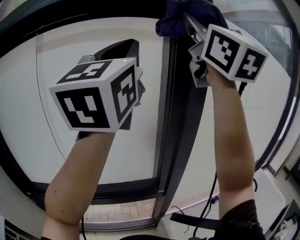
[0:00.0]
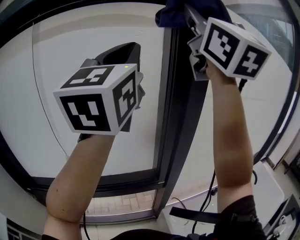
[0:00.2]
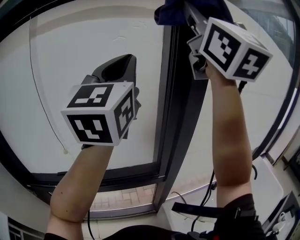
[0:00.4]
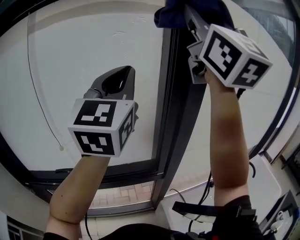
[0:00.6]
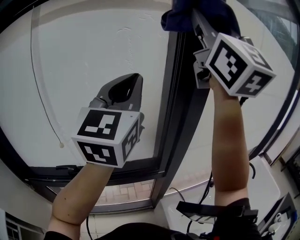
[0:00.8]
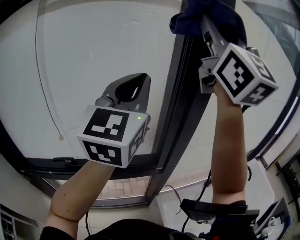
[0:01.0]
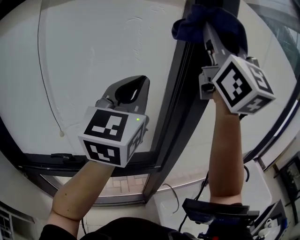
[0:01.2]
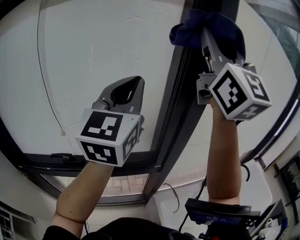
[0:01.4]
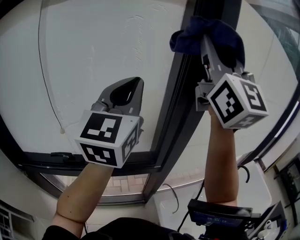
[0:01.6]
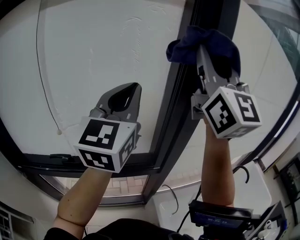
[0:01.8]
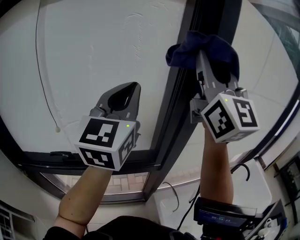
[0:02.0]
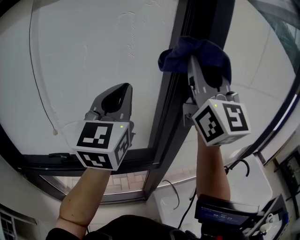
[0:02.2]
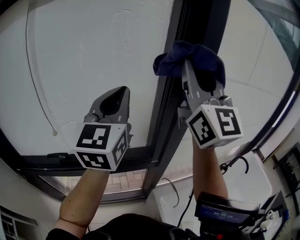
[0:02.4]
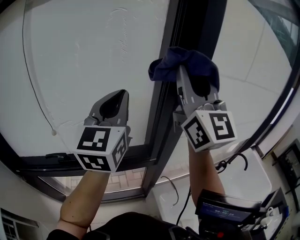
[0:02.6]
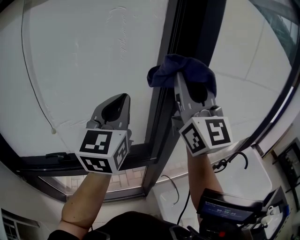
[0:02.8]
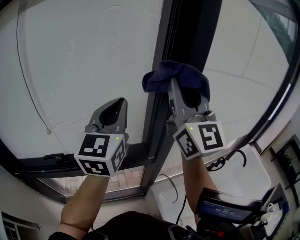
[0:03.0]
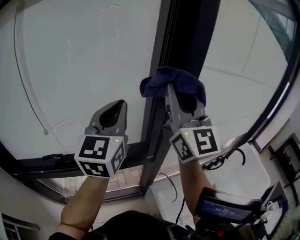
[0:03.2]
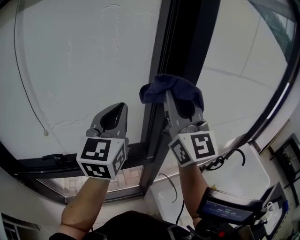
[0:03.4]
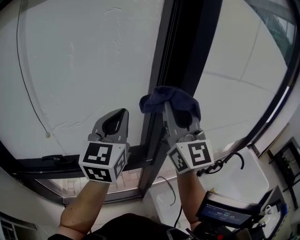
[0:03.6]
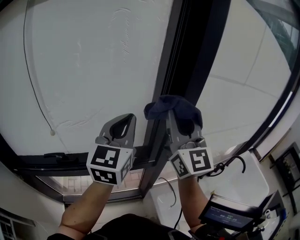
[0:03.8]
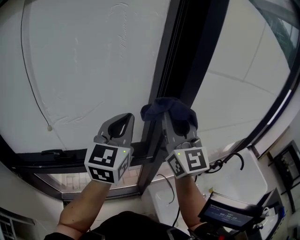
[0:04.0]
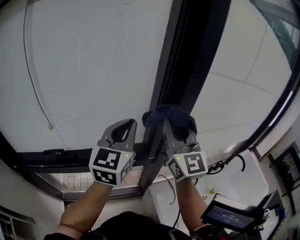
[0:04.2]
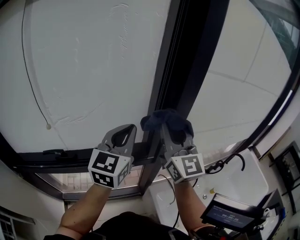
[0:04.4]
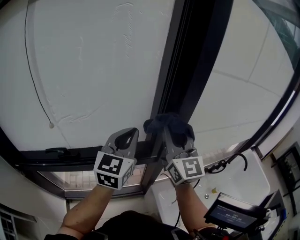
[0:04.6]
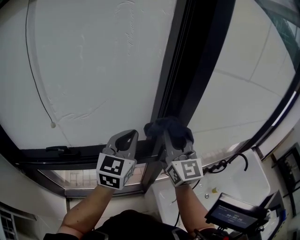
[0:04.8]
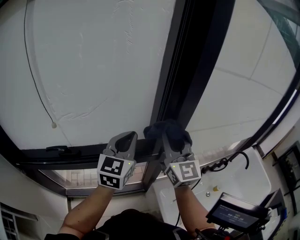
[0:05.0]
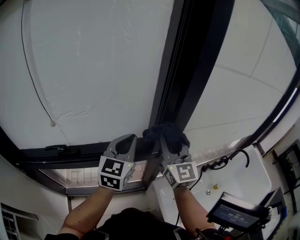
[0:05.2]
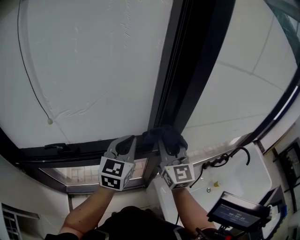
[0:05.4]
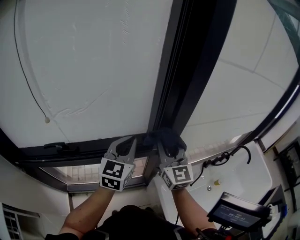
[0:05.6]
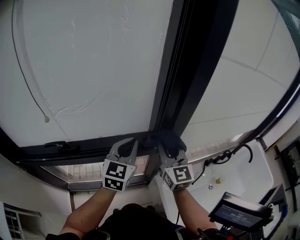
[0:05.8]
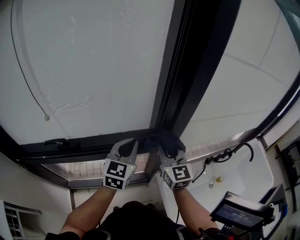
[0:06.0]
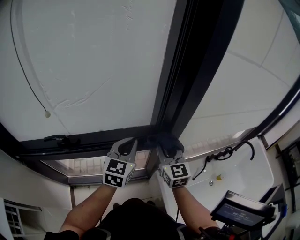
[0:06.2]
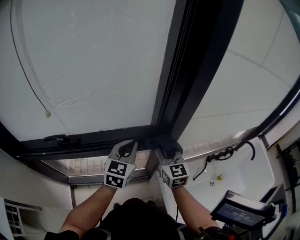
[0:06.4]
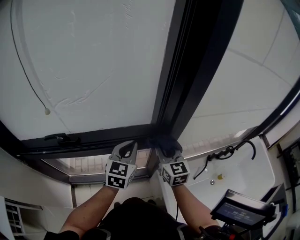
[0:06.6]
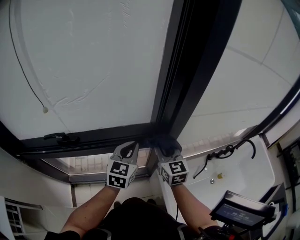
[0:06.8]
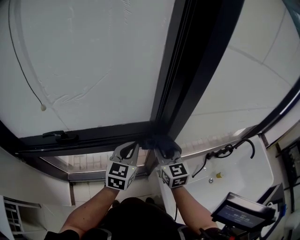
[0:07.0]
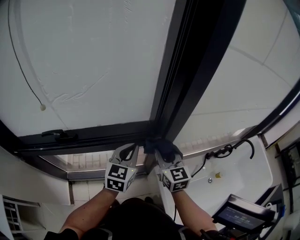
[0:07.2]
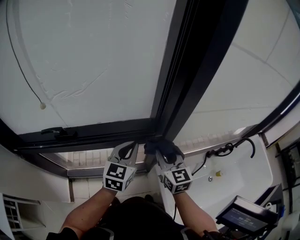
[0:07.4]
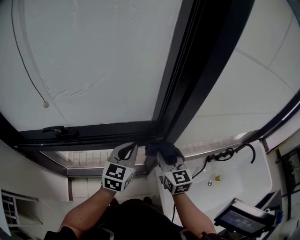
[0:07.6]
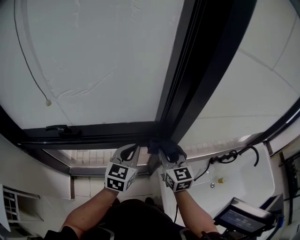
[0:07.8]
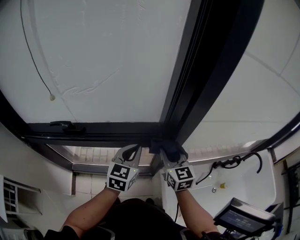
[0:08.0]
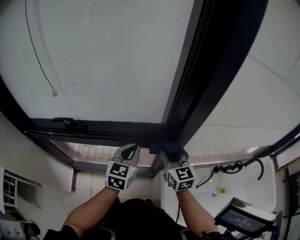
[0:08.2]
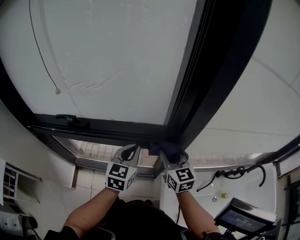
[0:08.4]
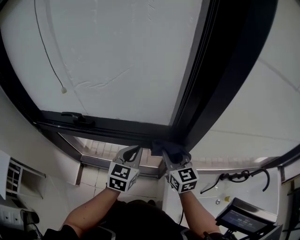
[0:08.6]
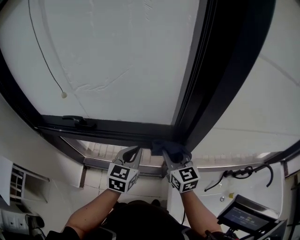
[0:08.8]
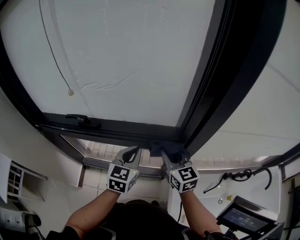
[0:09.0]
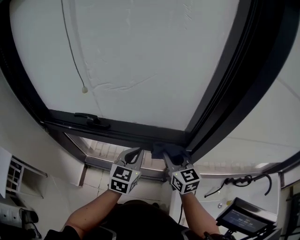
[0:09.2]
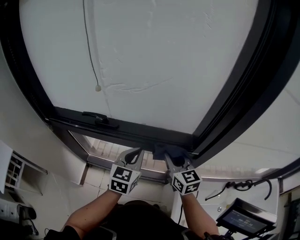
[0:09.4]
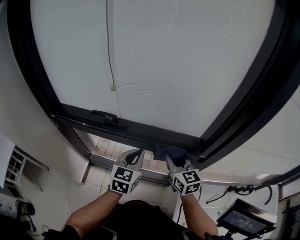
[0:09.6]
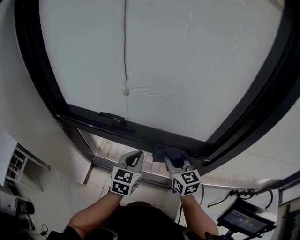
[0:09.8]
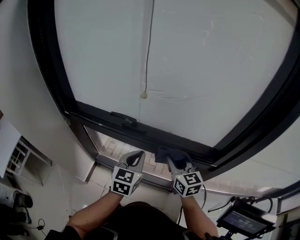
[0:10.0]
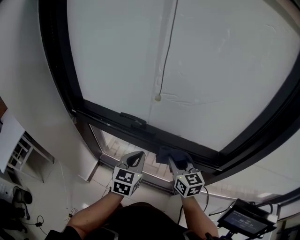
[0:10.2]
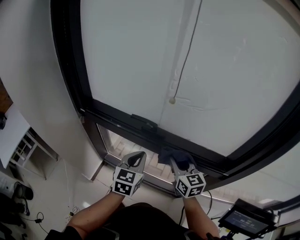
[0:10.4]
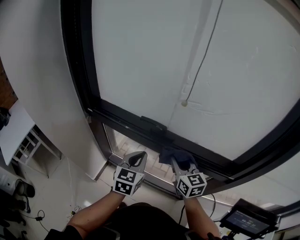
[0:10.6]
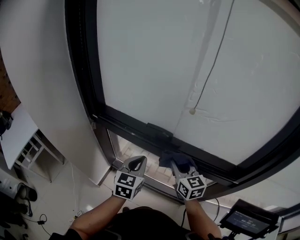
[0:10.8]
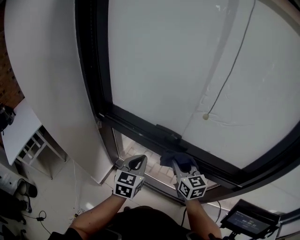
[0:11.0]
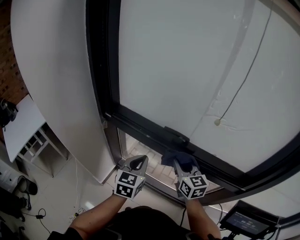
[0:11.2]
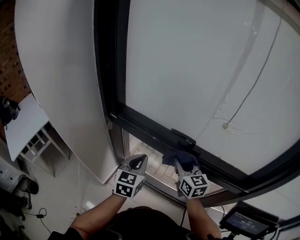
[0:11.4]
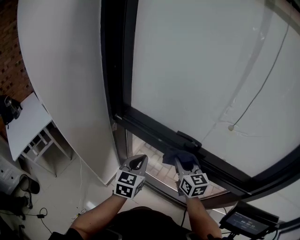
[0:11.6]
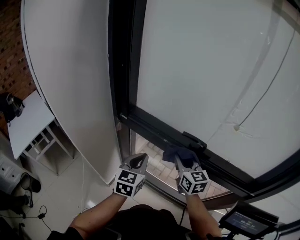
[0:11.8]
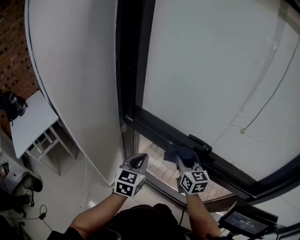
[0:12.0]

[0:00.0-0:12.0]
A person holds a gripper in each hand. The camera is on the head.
0:00.0 to 0:01.6: The grippers both shift downward by about 15 cm.
0:01.6 to 0:03.0: The right gripper heads downward, covering roughly 15 cm; the left gripper heads downward, covering about 10 cm.
0:03.0 to 0:04.4: The right gripper heads downward, covering about 15 cm, while the left gripper travels downward by roughly 10 cm.
0:04.4 to 0:06.0: Both grippers travel together downward, about 20 cm. The right gripper changes its angle by roughly 20 degrees.
0:06.0 to 0:07.6: The left gripper shifts about 5 cm downward. The right gripper travels downward by about 10 cm.
0:07.6 to 0:09.0: The two grippers go approximately 5 cm to the left. The right gripper rotates roughly 20 degrees.
0:09.0 to 0:10.4: Both grippers travel together to the left, some 25 cm.
0:10.4 to 0:12.0: The right gripper is displaced to the left and forward by roughly 25 cm. The left gripper heads to the left, covering some 25 cm.

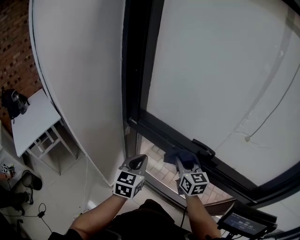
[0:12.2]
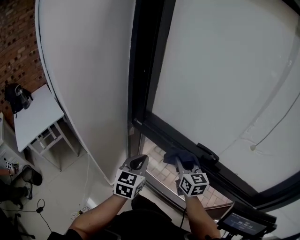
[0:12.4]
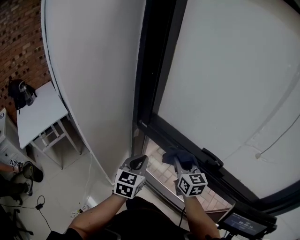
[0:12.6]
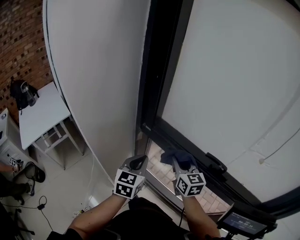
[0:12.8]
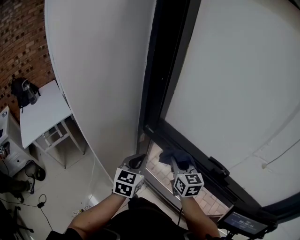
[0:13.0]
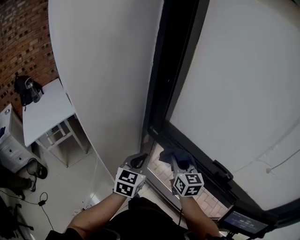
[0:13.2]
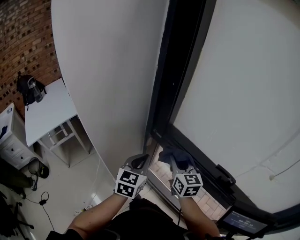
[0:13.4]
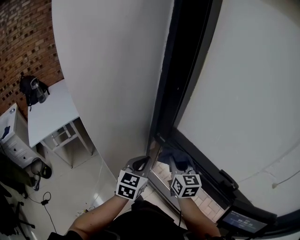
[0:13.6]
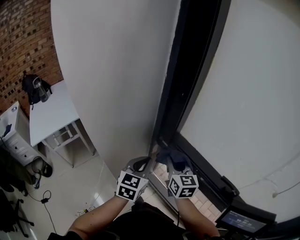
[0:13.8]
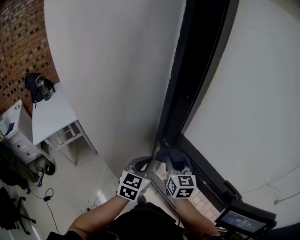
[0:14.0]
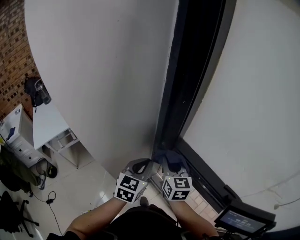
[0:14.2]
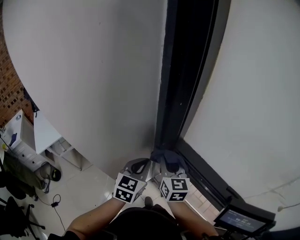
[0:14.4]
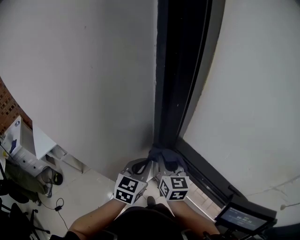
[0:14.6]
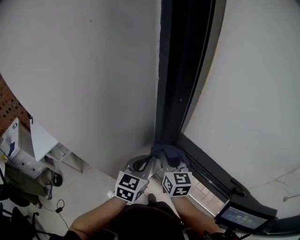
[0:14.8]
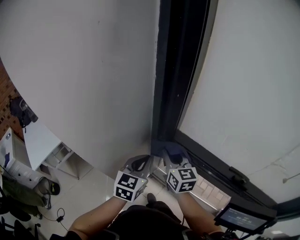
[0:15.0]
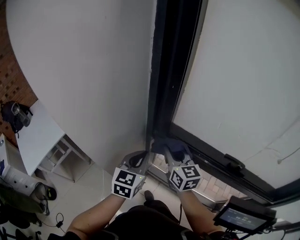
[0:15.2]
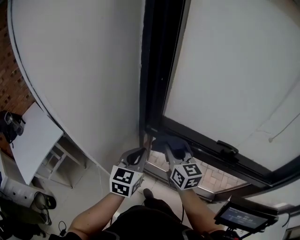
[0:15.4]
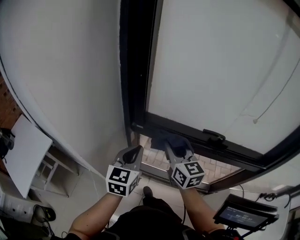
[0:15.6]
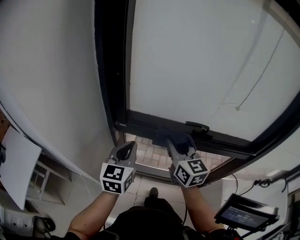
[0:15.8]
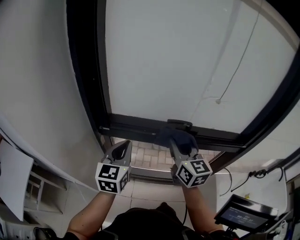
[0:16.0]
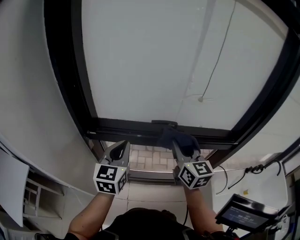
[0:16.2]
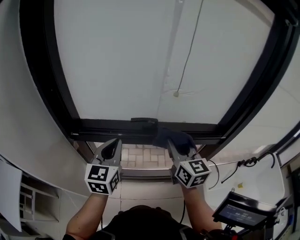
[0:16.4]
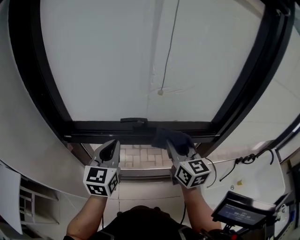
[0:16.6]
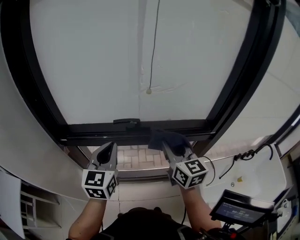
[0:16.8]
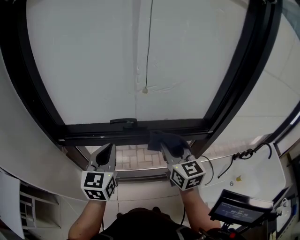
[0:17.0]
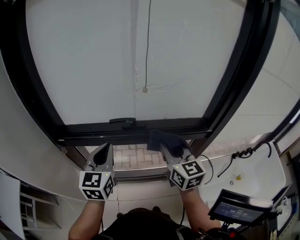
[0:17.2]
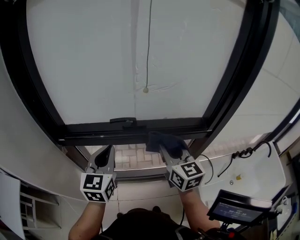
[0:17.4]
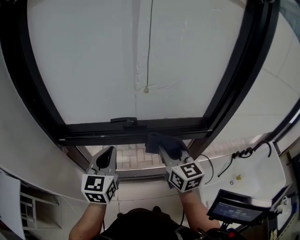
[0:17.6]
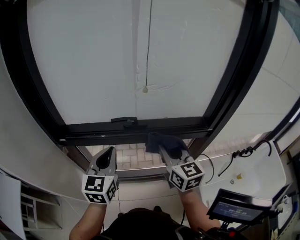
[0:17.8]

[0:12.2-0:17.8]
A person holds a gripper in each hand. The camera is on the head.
0:12.2 to 0:13.6: Both grippers travel together to the left and forward, some 15 cm.
0:13.6 to 0:15.0: The right gripper travels to the left by approximately 5 cm.
0:15.0 to 0:16.4: The left gripper moves roughly 25 cm, and rotates approximately 30 degrees. The right gripper moves roughly 40 cm, and changes its angle by approximately 40 degrees.
0:16.4 to 0:17.8: Both grippers move to the right, some 5 cm.

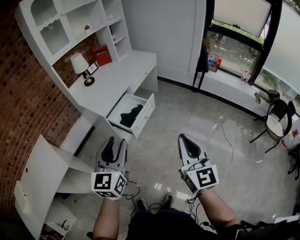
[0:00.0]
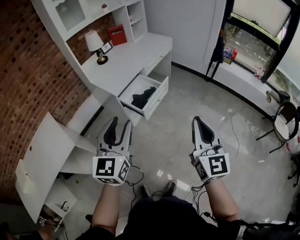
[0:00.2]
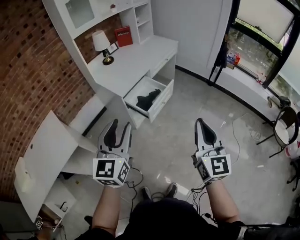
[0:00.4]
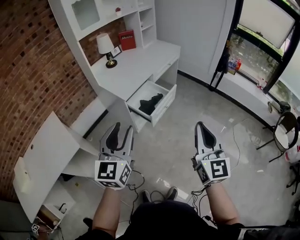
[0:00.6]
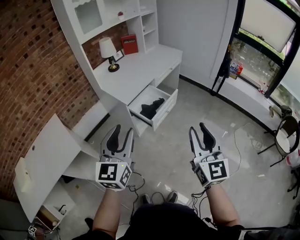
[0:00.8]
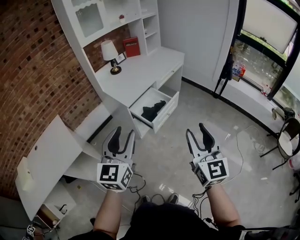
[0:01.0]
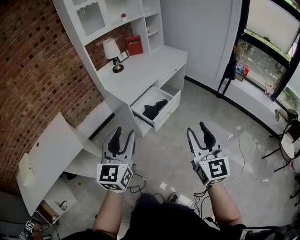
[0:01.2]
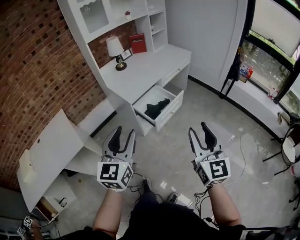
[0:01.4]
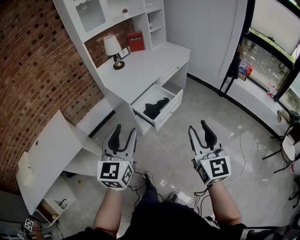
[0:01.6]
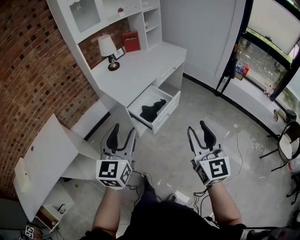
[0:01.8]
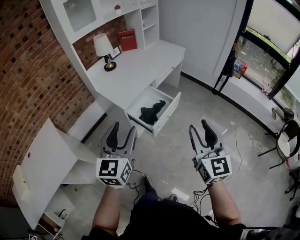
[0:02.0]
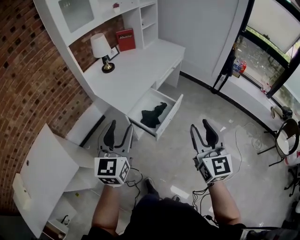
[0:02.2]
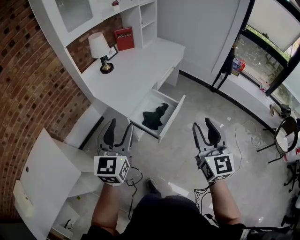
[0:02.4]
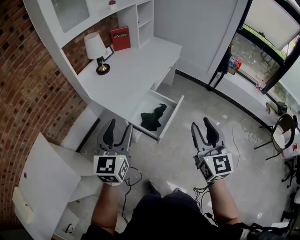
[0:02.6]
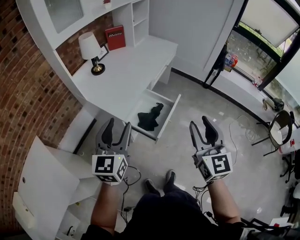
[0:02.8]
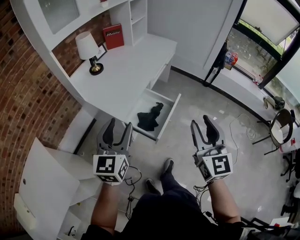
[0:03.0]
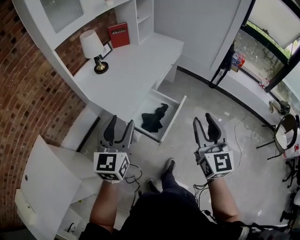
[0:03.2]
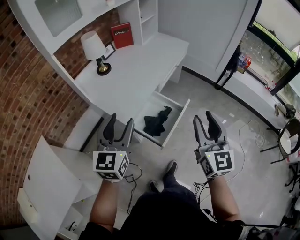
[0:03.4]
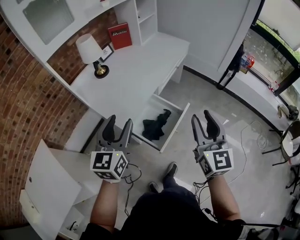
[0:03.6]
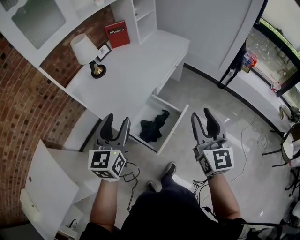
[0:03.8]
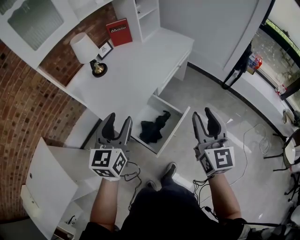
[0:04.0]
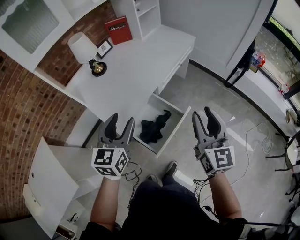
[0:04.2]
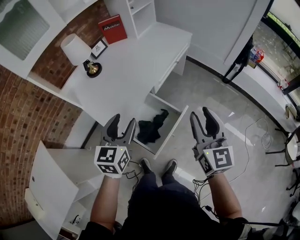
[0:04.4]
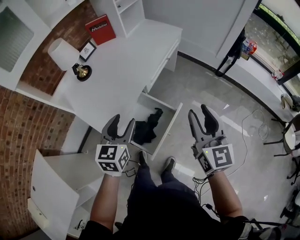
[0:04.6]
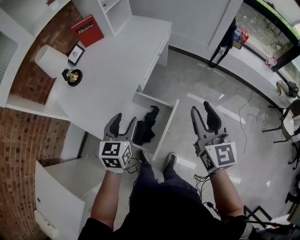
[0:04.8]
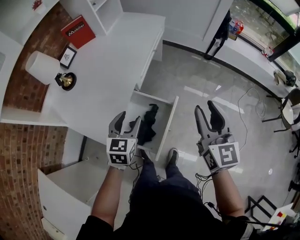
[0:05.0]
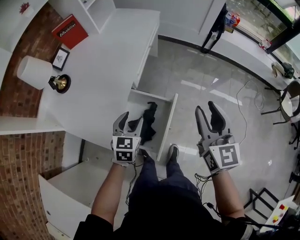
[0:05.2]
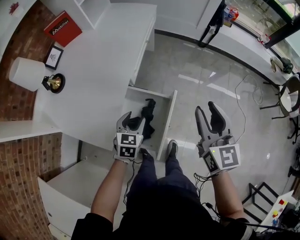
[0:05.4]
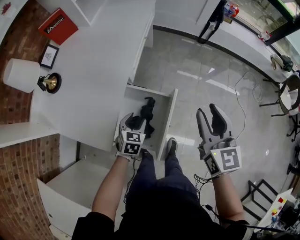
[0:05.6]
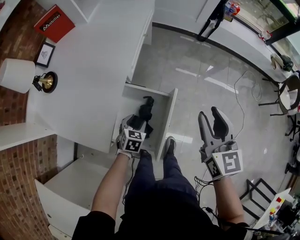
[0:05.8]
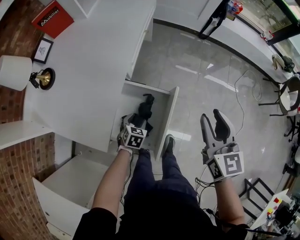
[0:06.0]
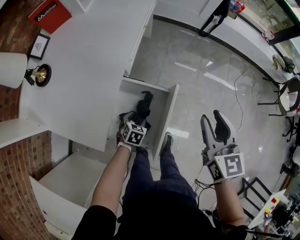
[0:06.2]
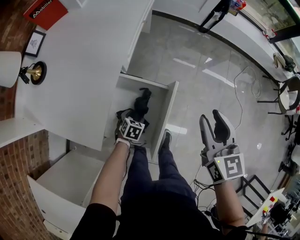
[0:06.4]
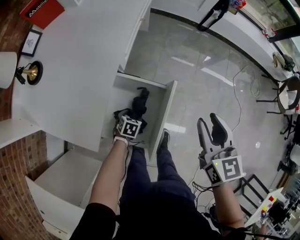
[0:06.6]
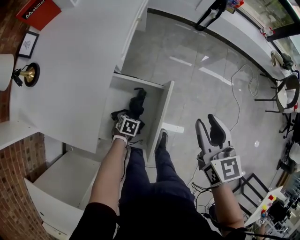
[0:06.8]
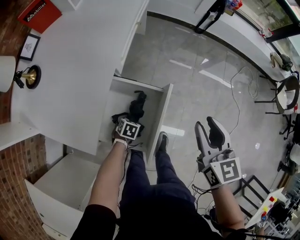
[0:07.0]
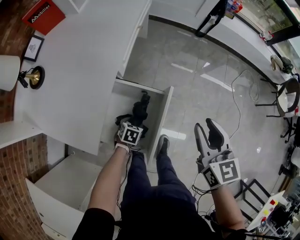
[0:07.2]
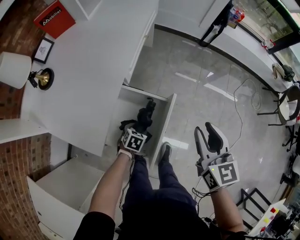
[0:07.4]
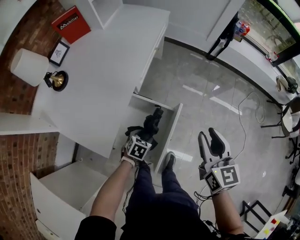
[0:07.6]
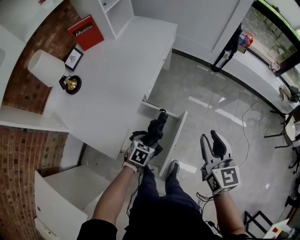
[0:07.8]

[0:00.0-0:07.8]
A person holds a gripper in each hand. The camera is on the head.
0:00.0 to 0:01.6: The left gripper travels to the left by some 5 cm. Meanwhile the right gripper heads forward and to the left, covering some 10 cm, and opens up.
0:01.6 to 0:03.2: The grippers both shift forward and to the left by about 30 cm.
0:03.2 to 0:04.6: The left gripper moves forward, downward and to the right, about 25 cm. The right gripper heads forward and to the right, covering approximately 25 cm.
0:04.6 to 0:06.2: The right gripper heads downward, covering approximately 15 cm, and changes its angle by some 30 degrees; the left gripper travels downward by approximately 40 cm, and tips its fingers downward by approximately 40 degrees.
0:06.2 to 0:07.8: The left gripper shifts roughly 10 cm upward.
